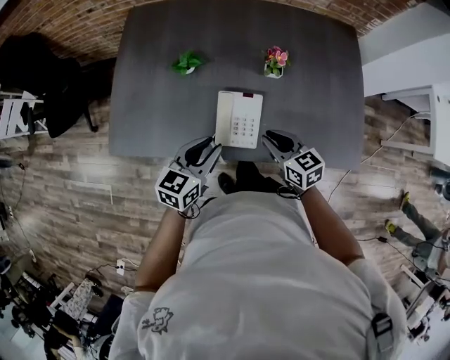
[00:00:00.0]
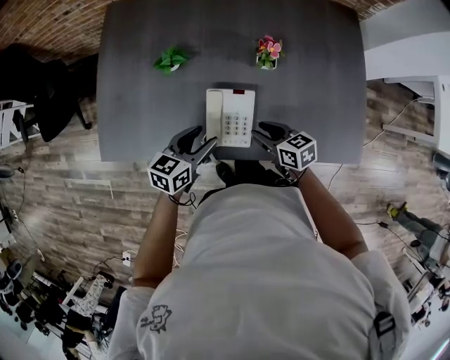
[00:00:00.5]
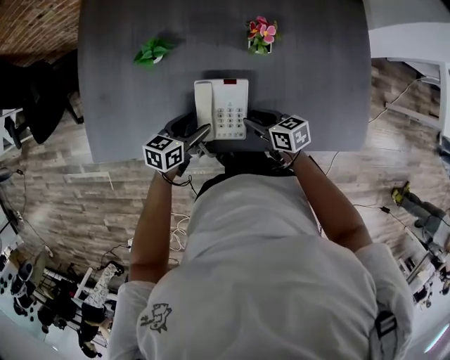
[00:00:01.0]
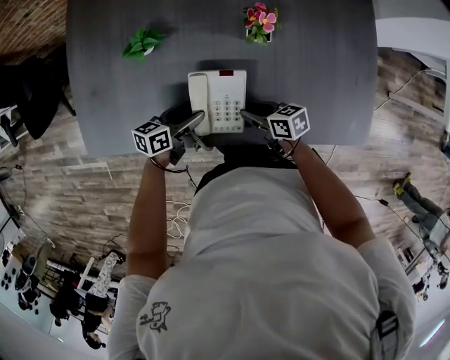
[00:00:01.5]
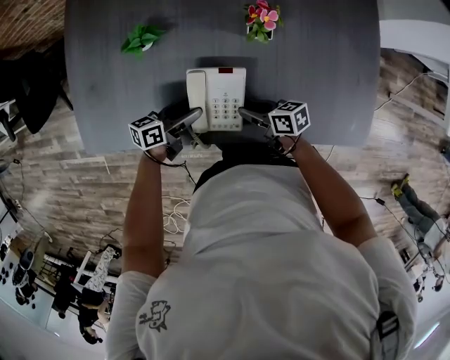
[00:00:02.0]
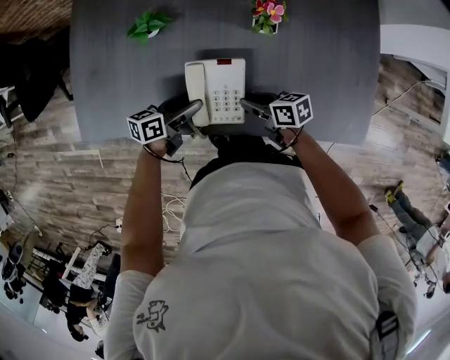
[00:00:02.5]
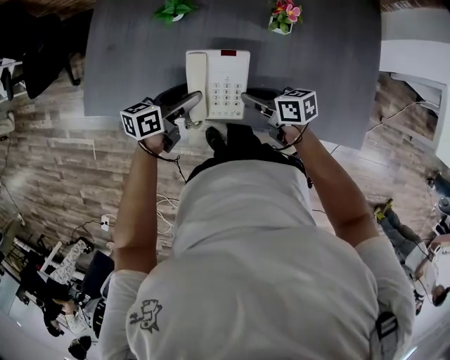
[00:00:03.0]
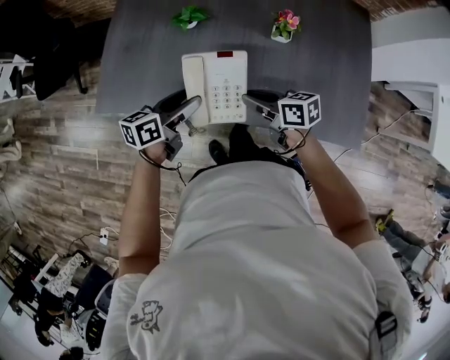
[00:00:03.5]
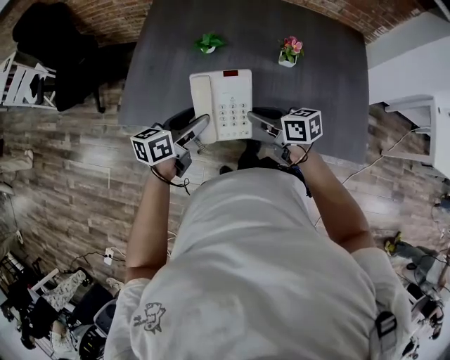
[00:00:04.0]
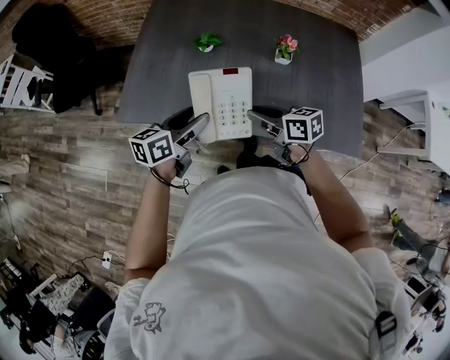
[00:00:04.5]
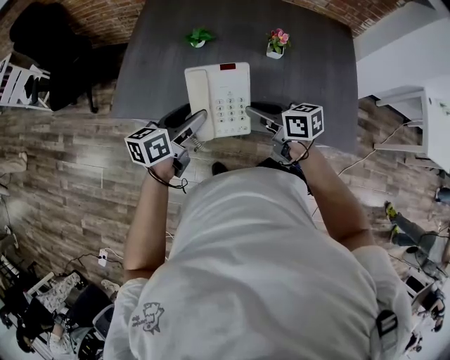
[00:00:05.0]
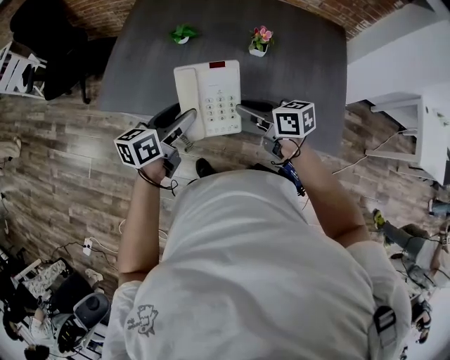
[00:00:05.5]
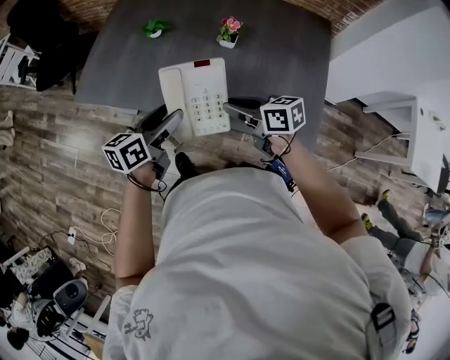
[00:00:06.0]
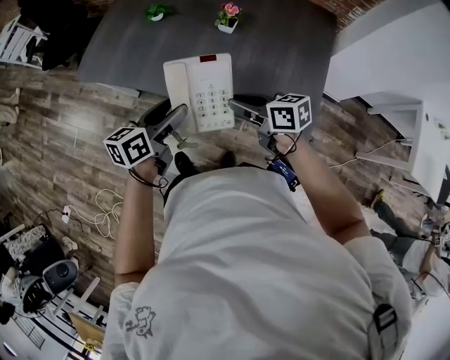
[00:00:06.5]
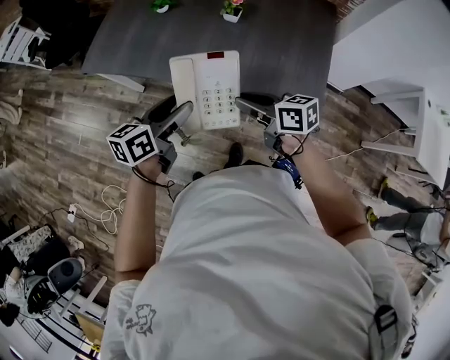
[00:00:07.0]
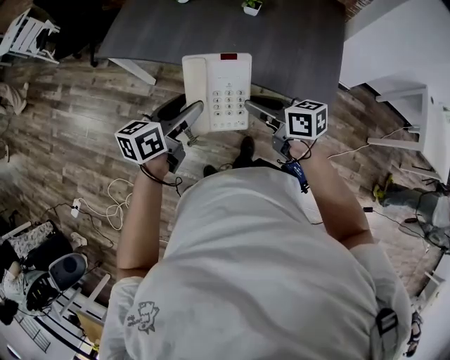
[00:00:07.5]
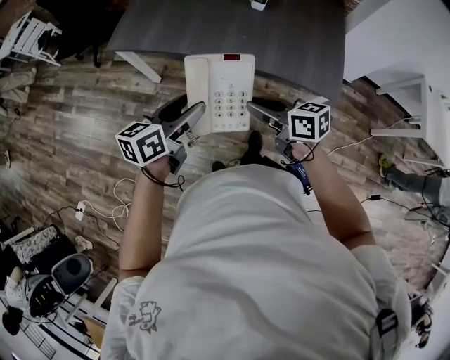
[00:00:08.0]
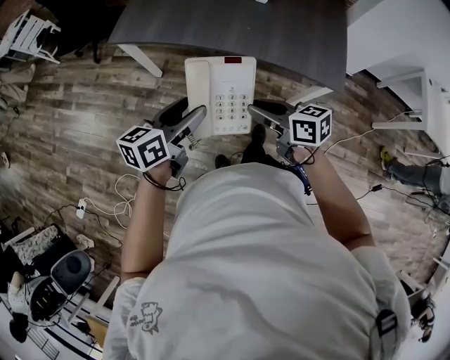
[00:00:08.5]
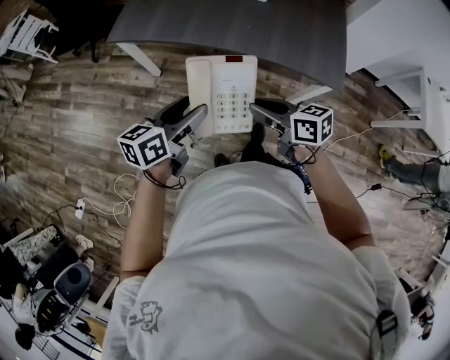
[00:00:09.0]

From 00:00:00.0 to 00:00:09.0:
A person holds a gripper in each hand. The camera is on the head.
From 00:00:00.0 to 00:00:02.0: The grippers both shift downward by some 20 cm. The right gripper turns by some 40 degrees, while the left gripper changes its angle by roughly 40 degrees, and opens.
From 00:00:02.0 to 00:00:04.5: Both grippers travel together upward, about 20 cm. The left gripper changes its angle by roughly 30 degrees; the right gripper changes its angle by about 20 degrees.
From 00:00:04.5 to 00:00:07.0: The right gripper shifts approximately 25 cm to the right and backward. The left gripper is displaced backward and to the right by about 30 cm.
From 00:00:07.0 to 00:00:09.0: The left gripper travels to the left and backward by about 20 cm, while the right gripper heads backward and to the left, covering roughly 25 cm.

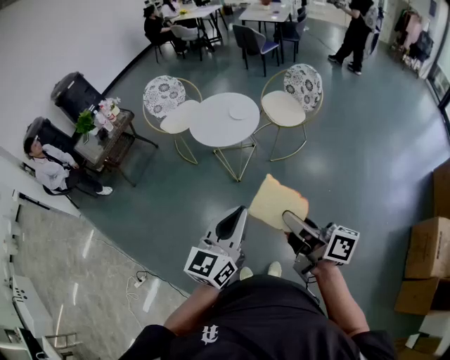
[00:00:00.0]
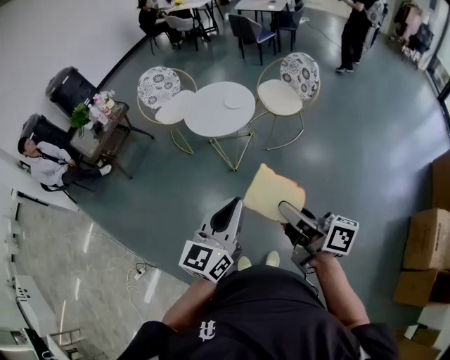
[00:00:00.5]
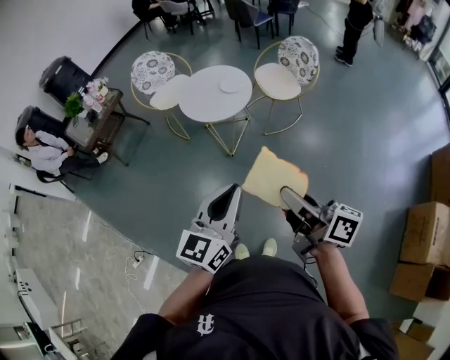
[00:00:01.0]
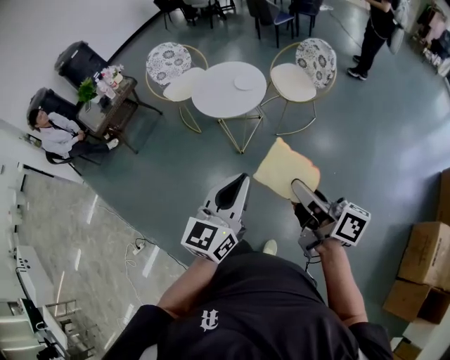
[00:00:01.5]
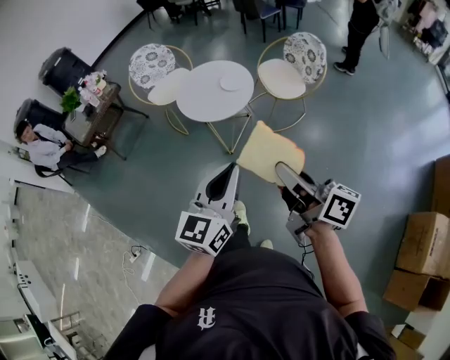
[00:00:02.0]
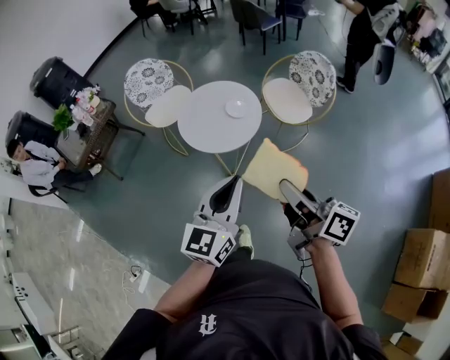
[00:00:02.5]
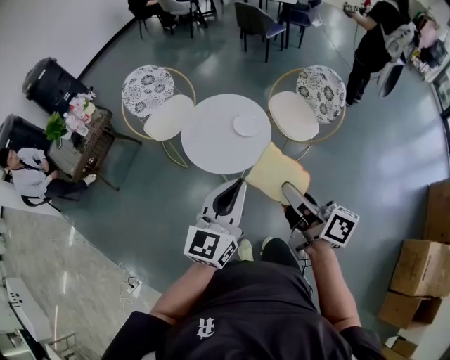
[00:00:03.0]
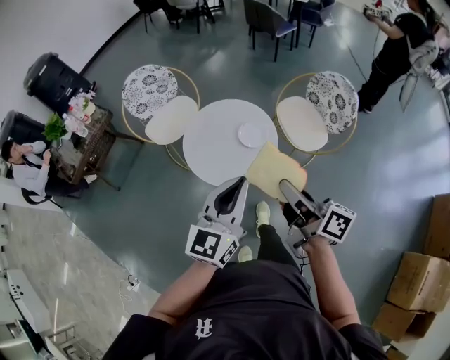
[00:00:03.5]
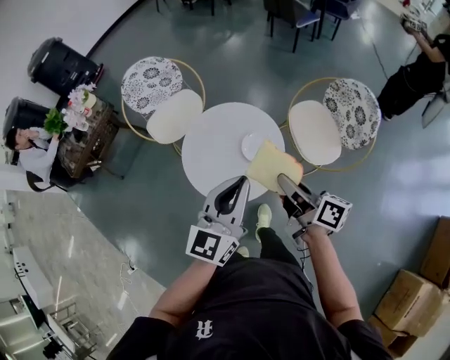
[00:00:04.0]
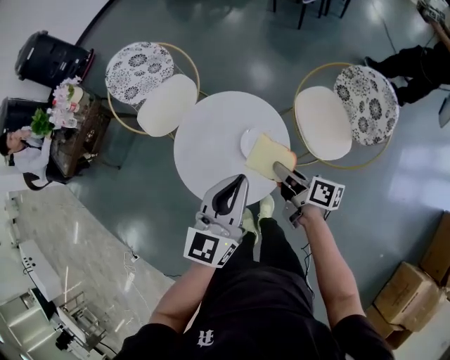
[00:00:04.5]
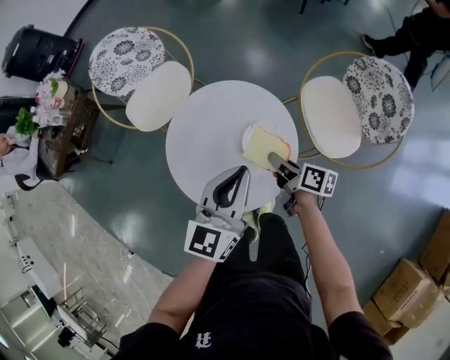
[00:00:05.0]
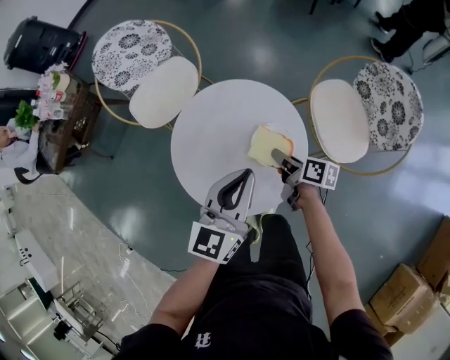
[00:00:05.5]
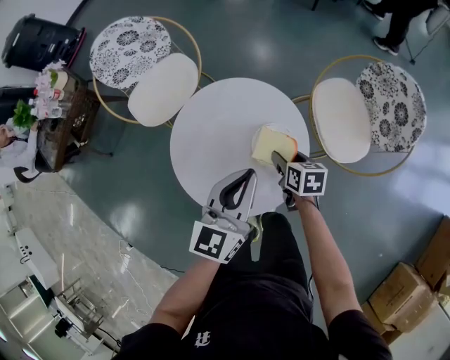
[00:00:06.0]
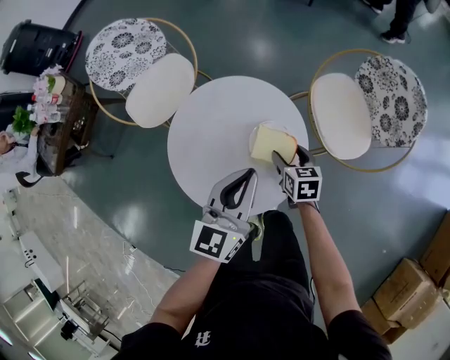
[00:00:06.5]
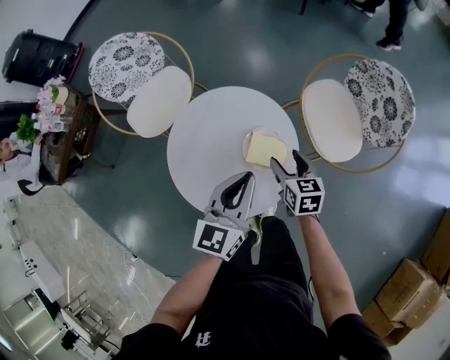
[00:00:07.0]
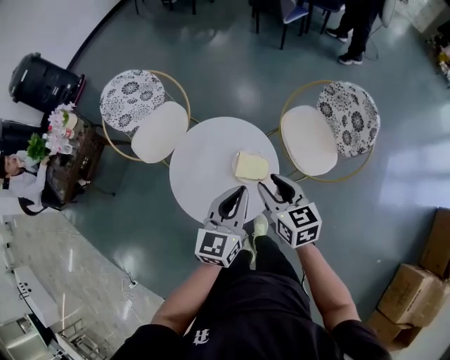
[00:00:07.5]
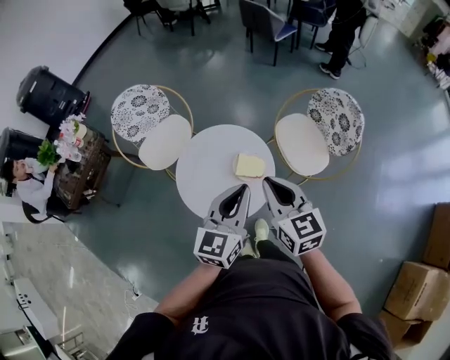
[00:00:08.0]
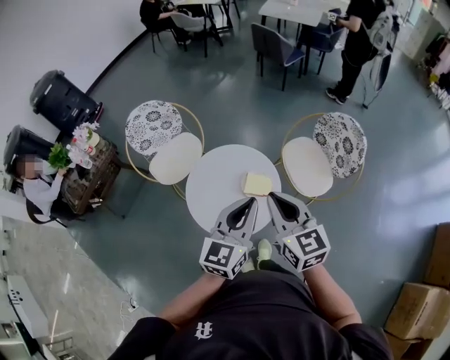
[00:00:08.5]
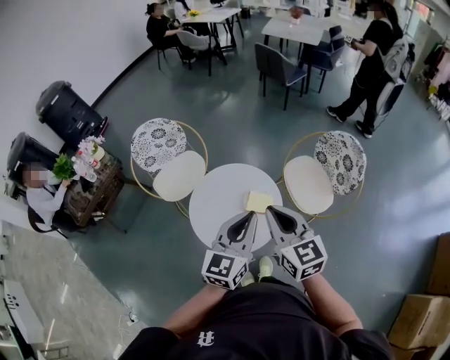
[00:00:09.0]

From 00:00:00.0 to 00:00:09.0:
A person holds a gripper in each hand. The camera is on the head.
From 00:00:00.0 to 00:00:02.0: The two grippers go approximately 10 cm forward.
From 00:00:02.0 to 00:00:04.5: The pair of grippers is taken forward, approximately 60 cm. The right gripper heads downward, covering roughly 30 cm, and changes its angle by approximately 30 degrees.
From 00:00:04.5 to 00:00:07.0: Both grippers travel together downward and forward, roughly 15 cm. The right gripper rotates around the line of its fingers by some 40 degrees, counterclockwise from behind, and opens.
From 00:00:07.0 to 00:00:09.0: The right gripper moves upward, approximately 35 cm, swivels about 30 degrees, and closes up; the left gripper travels upward and backward by roughly 25 cm.

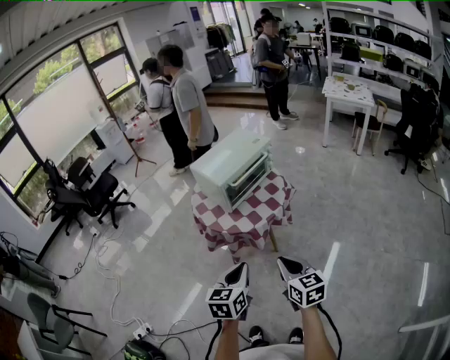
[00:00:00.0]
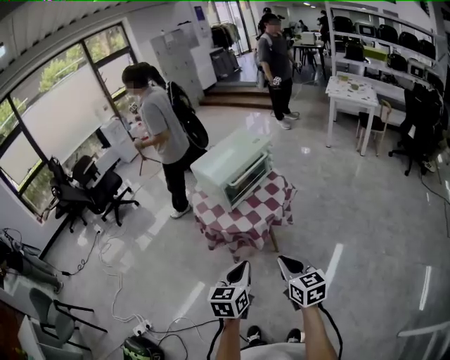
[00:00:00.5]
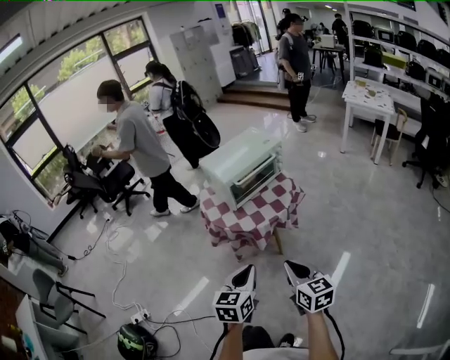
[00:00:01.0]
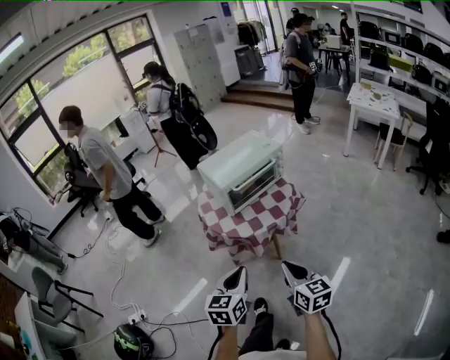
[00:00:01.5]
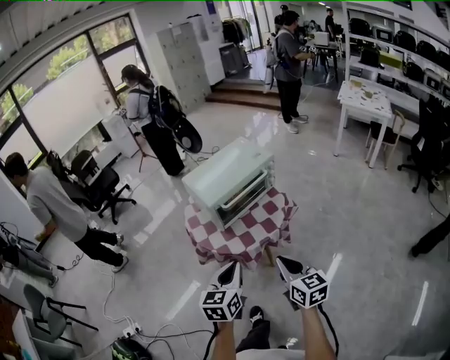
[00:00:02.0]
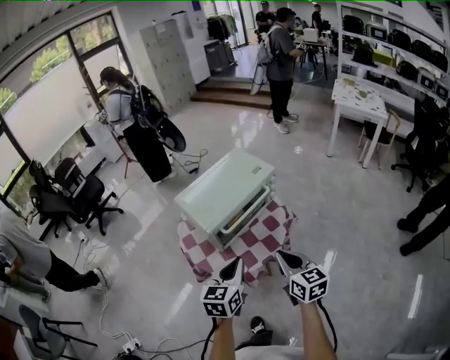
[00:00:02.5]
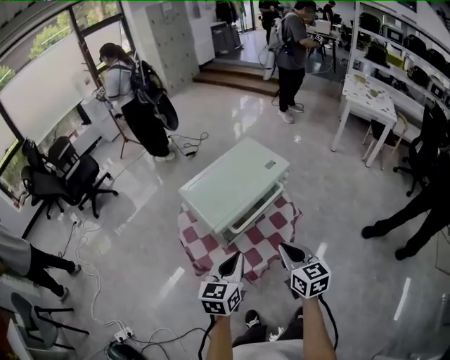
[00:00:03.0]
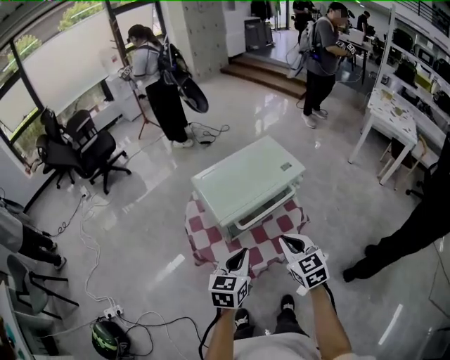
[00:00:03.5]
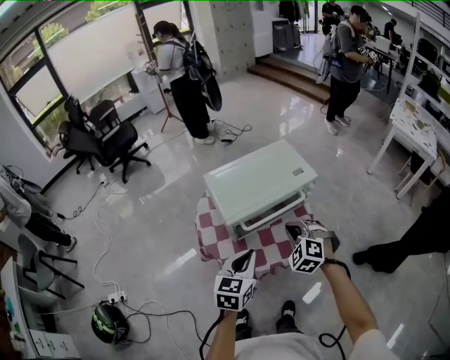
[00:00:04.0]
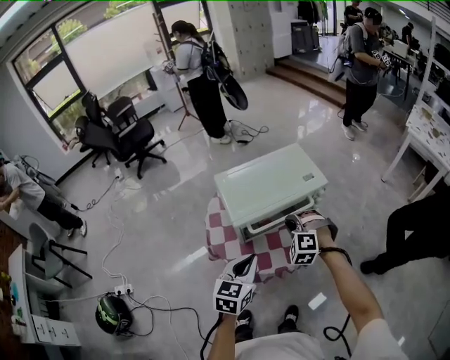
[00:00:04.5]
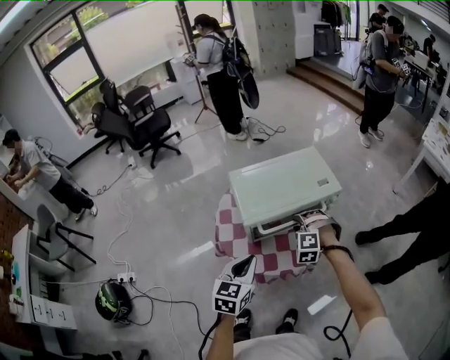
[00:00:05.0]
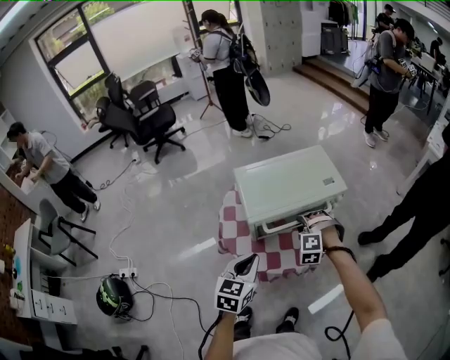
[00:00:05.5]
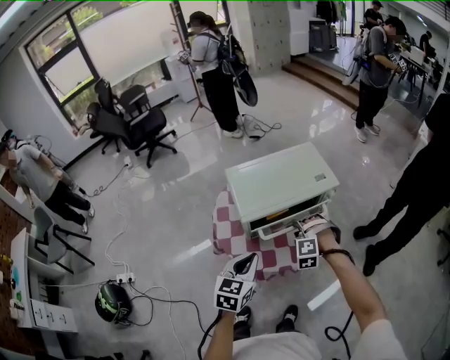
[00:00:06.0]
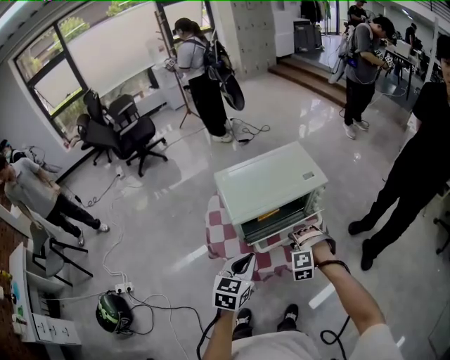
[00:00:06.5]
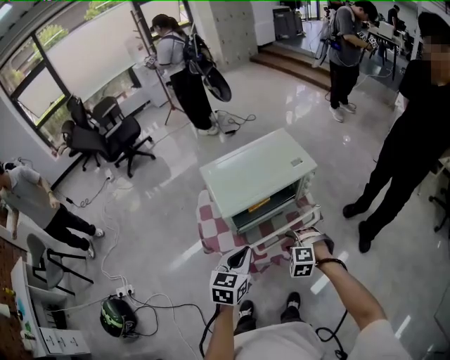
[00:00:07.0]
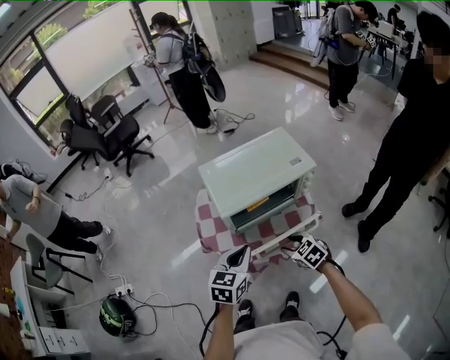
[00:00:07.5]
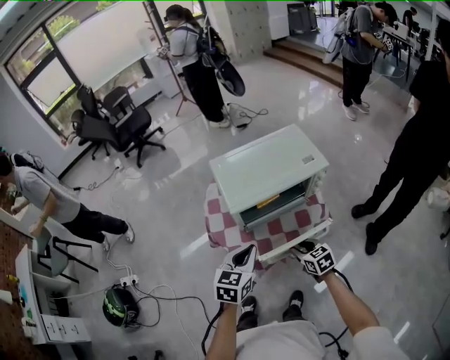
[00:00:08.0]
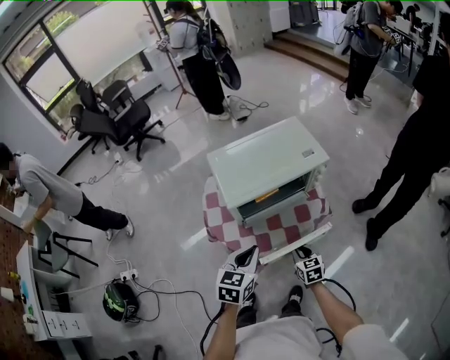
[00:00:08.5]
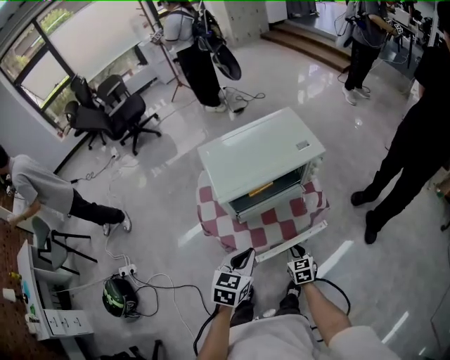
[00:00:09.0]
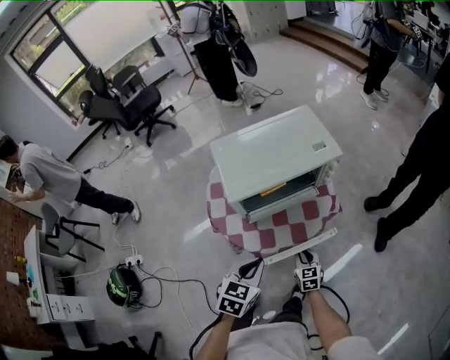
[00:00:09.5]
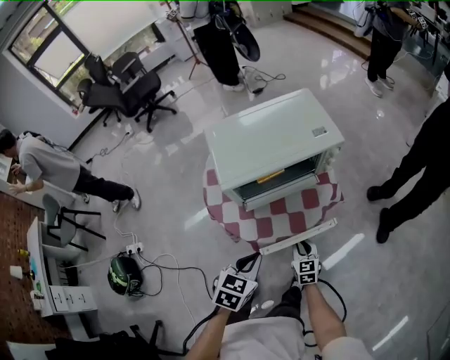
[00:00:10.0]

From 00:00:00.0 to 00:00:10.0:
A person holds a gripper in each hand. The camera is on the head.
From 00:00:00.0 to 00:00:02.0: The grippers both shift forward and to the right by some 15 cm.
From 00:00:02.0 to 00:00:04.0: The right gripper goes some 30 cm forward, and twists about 70 degrees counterclockwise, seen from behind, while the left gripper goes roughly 20 cm forward.
From 00:00:04.0 to 00:00:06.0: The right gripper travels downward by about 10 cm, turns by roughly 40 degrees, and opens.
From 00:00:06.0 to 00:00:08.0: The right gripper travels backward and downward by some 10 cm, and rolls clockwise, seen from behind, by some 90 degrees.
From 00:00:08.0 to 00:00:10.0: The right gripper is displaced downward by some 15 cm, while the left gripper shifts some 10 cm downward and backward.
